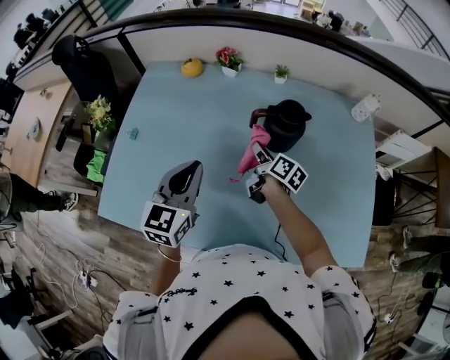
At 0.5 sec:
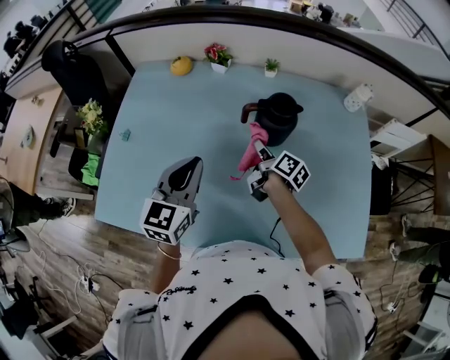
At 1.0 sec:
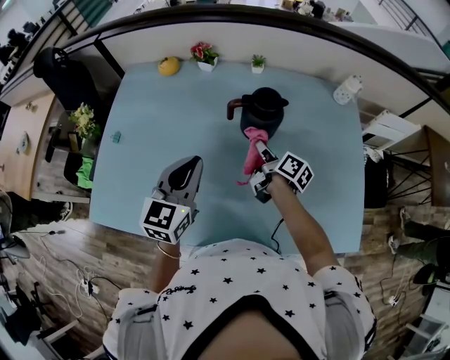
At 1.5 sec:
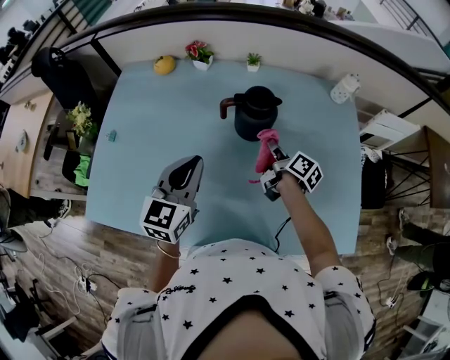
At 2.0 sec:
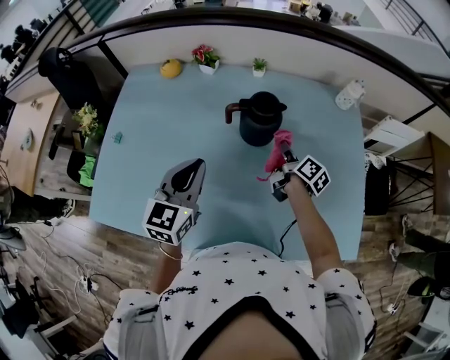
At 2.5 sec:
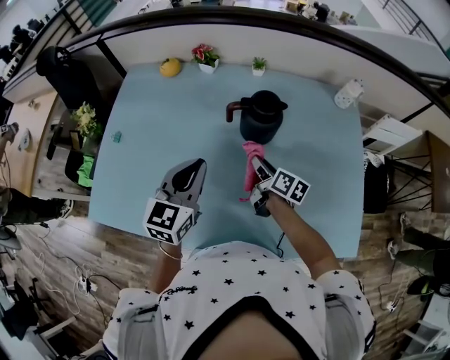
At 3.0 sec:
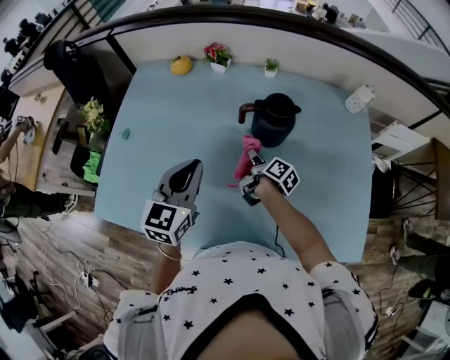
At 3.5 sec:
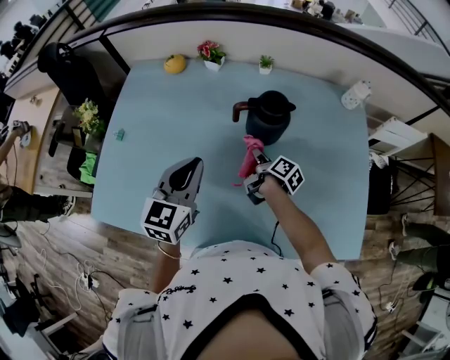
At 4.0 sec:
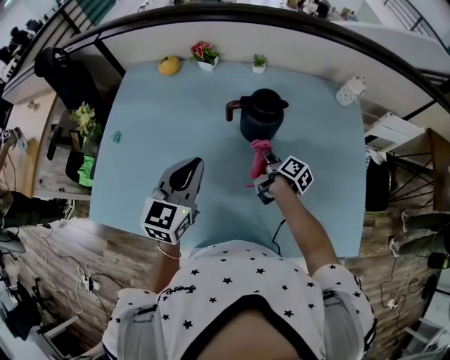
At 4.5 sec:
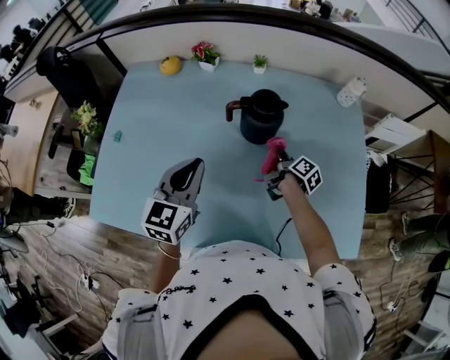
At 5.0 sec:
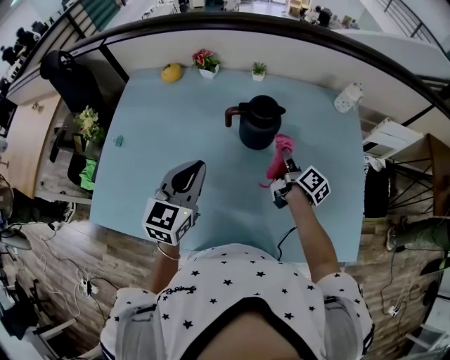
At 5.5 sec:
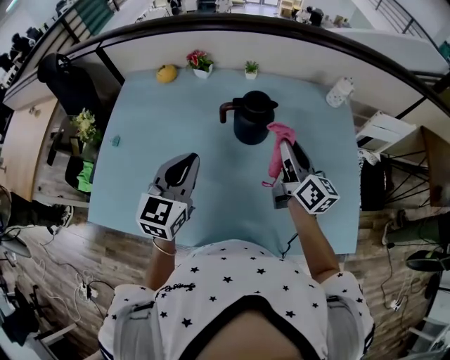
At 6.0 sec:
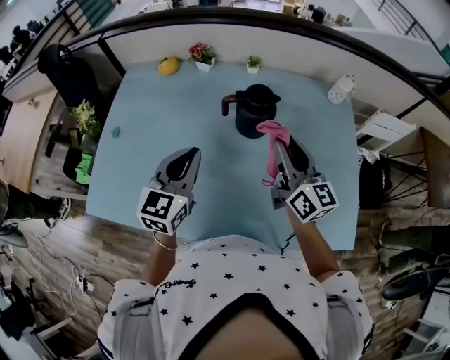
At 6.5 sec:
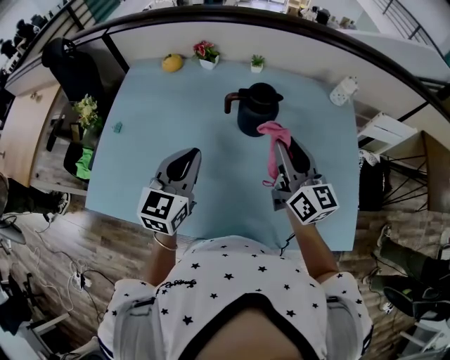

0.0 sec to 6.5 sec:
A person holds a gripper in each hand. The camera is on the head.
0.0 sec to 2.0 sec: The left gripper moves to the right, some 10 cm; the right gripper is displaced to the right by about 15 cm.
2.0 sec to 4.5 sec: The right gripper heads downward, covering roughly 5 cm, and travels to the left and back again, some 15 cm each way.
4.5 sec to 6.5 sec: The right gripper goes roughly 25 cm upward, and twists roughly 60 degrees counterclockwise, seen from behind.

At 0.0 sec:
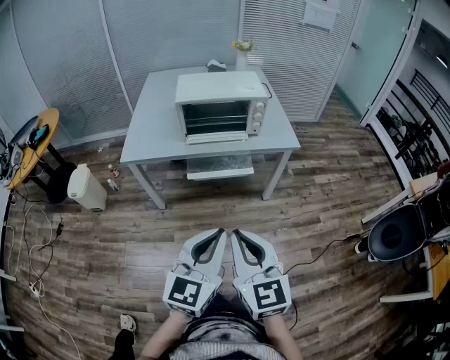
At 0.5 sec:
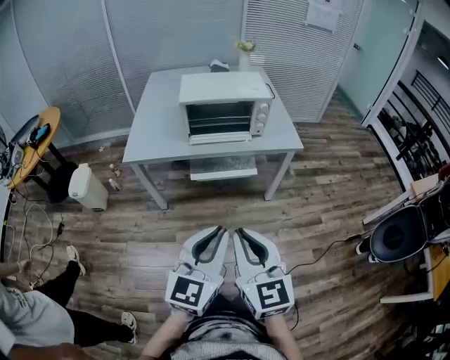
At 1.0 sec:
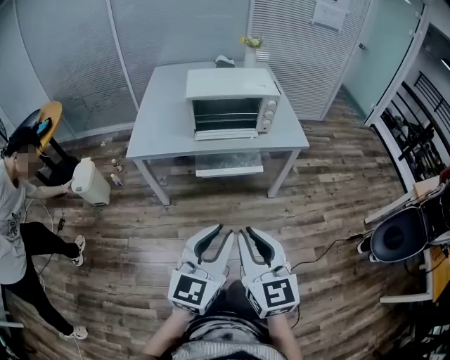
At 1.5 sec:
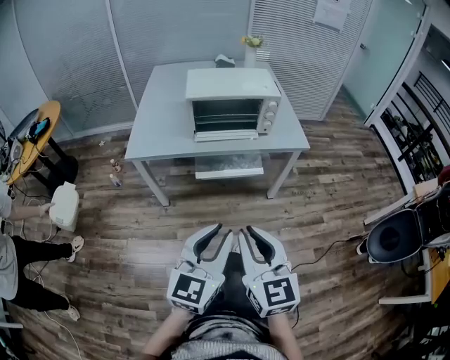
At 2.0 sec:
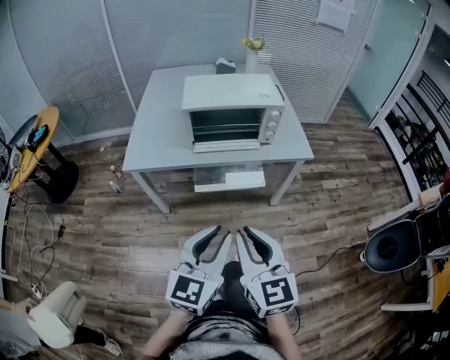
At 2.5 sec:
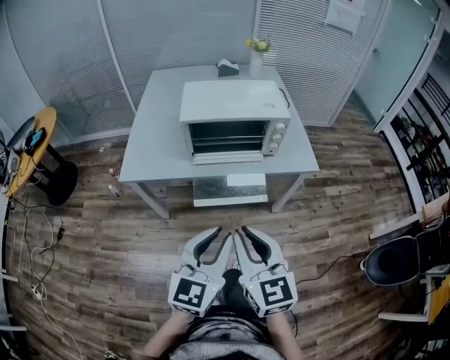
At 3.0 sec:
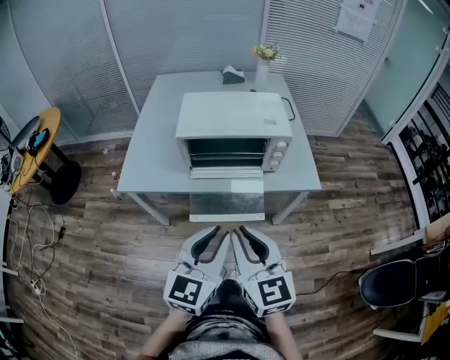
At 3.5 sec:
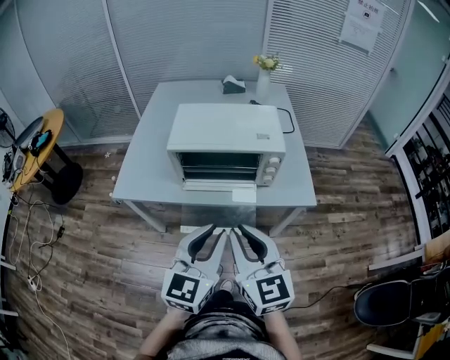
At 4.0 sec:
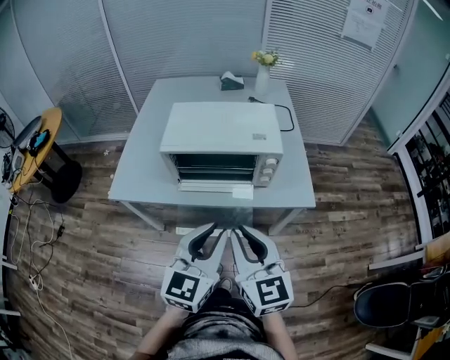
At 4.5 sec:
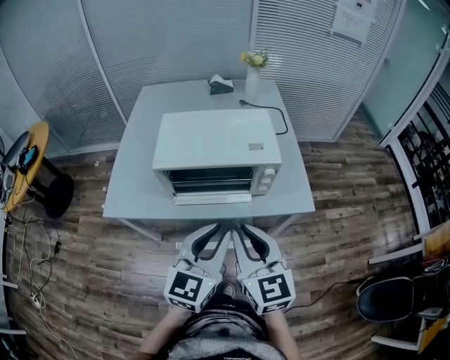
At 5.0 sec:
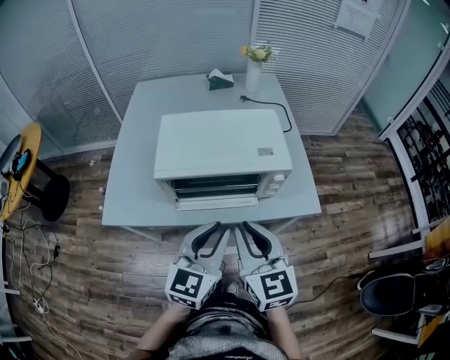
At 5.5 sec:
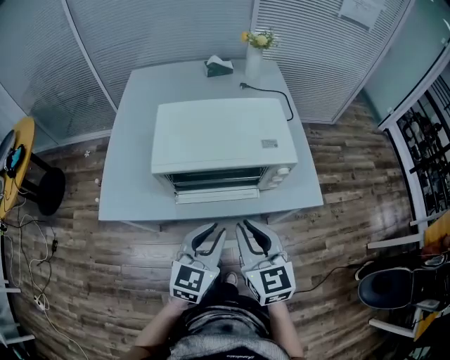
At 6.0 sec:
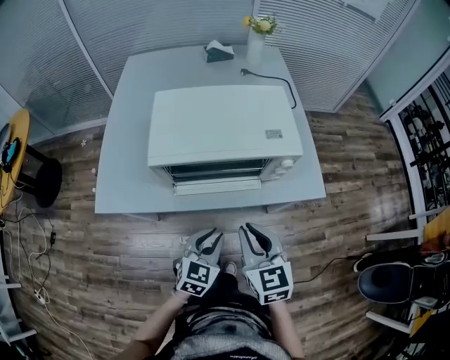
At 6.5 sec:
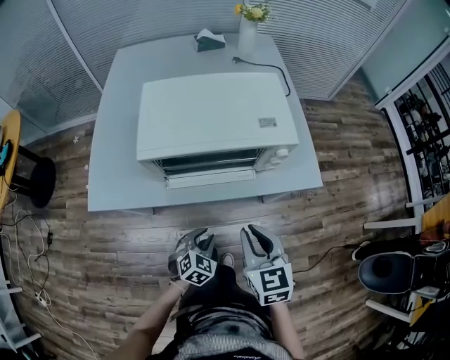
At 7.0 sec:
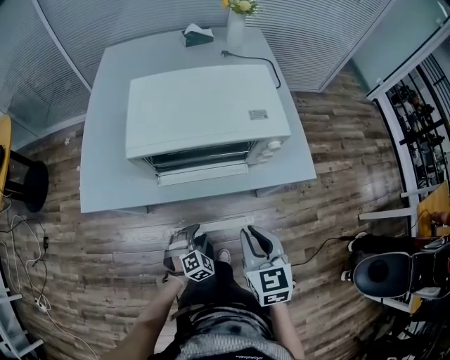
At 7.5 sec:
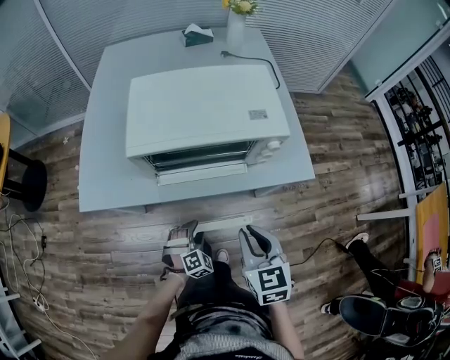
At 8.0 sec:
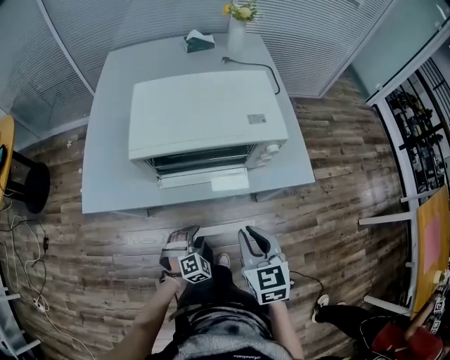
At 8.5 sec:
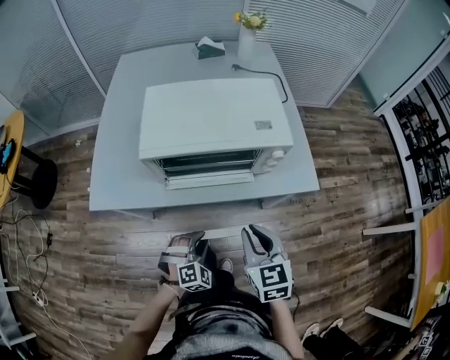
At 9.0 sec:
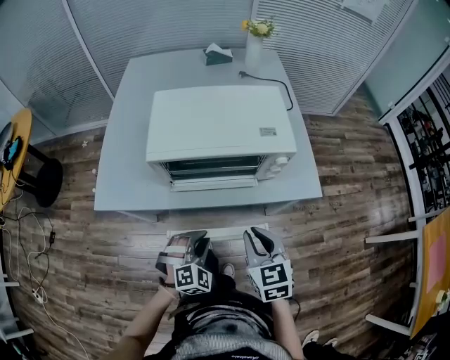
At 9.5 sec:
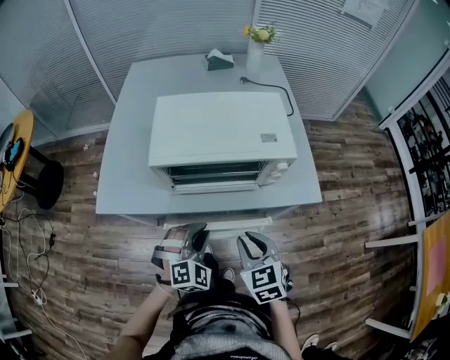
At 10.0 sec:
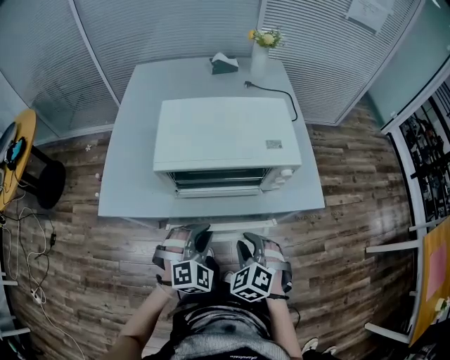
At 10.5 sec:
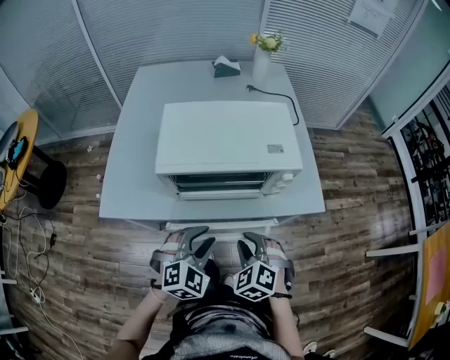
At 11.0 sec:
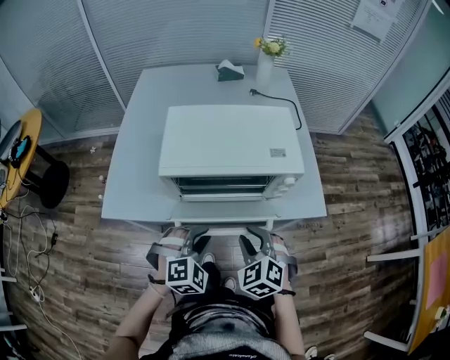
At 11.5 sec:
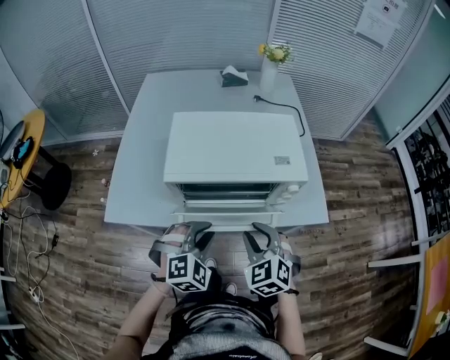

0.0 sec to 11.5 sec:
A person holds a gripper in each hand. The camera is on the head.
0.0 sec to 2.0 sec: Both grippers travel together forward, roughly 10 cm.
2.0 sec to 4.0 sec: Both grippers travel together forward, approximately 25 cm.
4.0 sec to 6.0 sec: The left gripper is displaced downward by about 20 cm, and rotates roughly 30 degrees. The right gripper is displaced downward and forward by about 15 cm.
6.0 sec to 7.5 sec: The left gripper goes roughly 20 cm downward, rotates around the line of its fingers by some 40 degrees, clockwise from behind, and opens up, while the right gripper moves approximately 5 cm.
7.5 sec to 9.5 sec: The left gripper moves upward, roughly 20 cm, and closes.
9.5 sec to 11.5 sec: The left gripper ends up about 5 cm from where it was. Meanwhile the right gripper shifts about 5 cm forward, and swivels approximately 20 degrees.

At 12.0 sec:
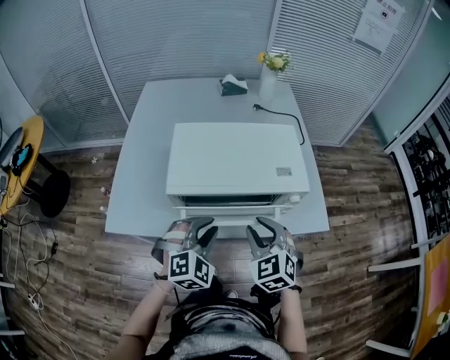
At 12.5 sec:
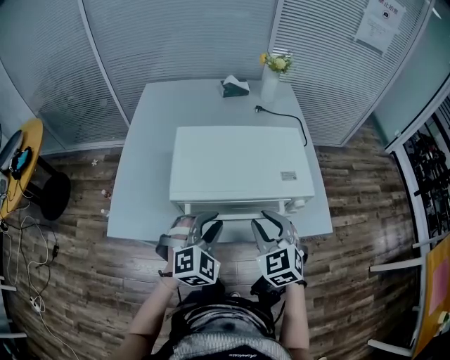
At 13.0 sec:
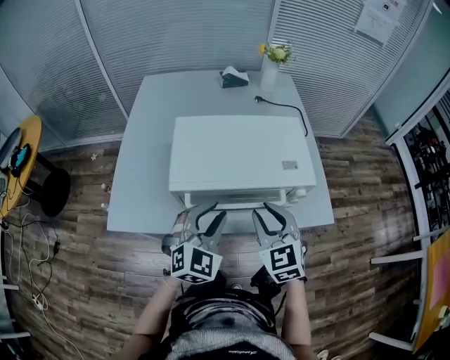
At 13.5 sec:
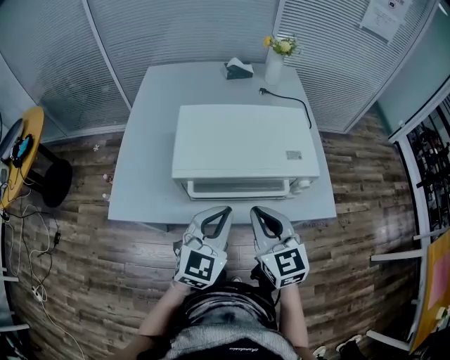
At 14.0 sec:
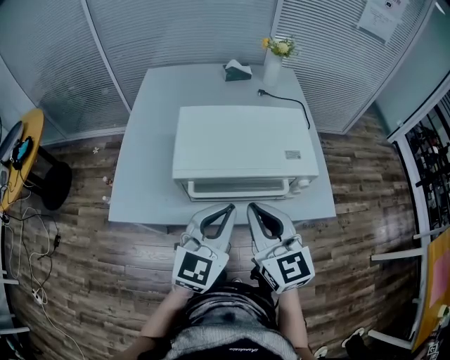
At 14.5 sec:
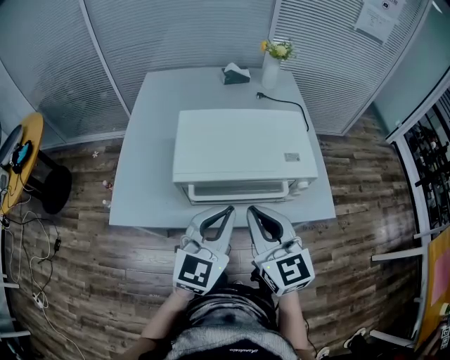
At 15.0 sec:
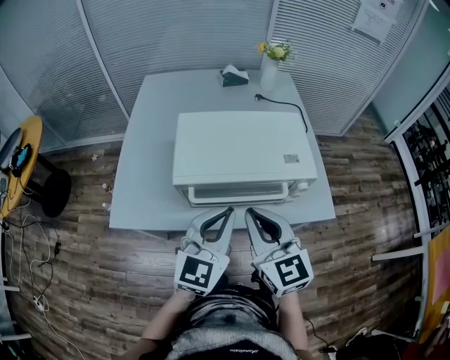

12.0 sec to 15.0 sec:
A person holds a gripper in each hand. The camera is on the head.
12.0 sec to 13.5 sec: The left gripper goes about 5 cm upward, turns by about 40 degrees, and closes. Meanwhile the right gripper shifts by about 5 cm, changes its angle by roughly 30 degrees, and closes up.
13.5 sec to 15.0 sec: The two grippers go some 5 cm upward.

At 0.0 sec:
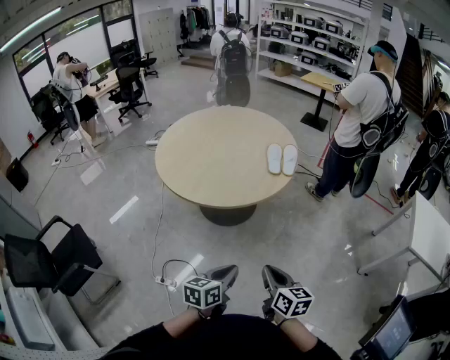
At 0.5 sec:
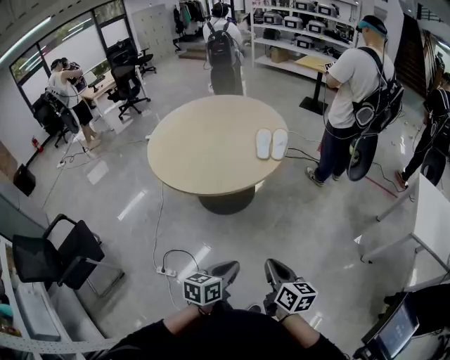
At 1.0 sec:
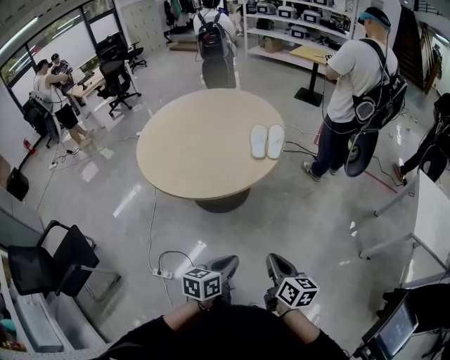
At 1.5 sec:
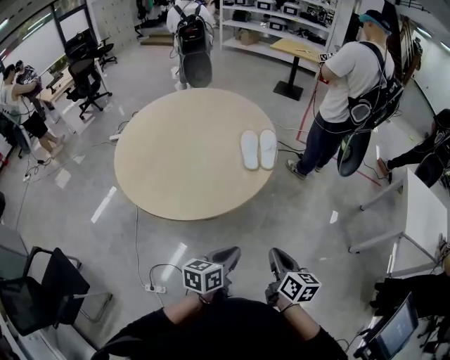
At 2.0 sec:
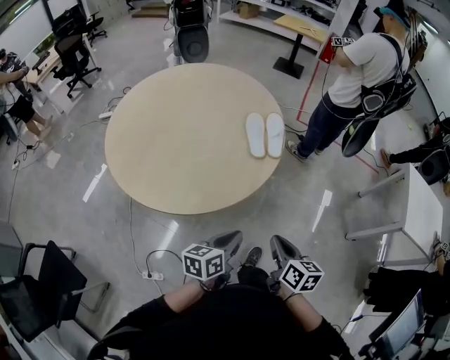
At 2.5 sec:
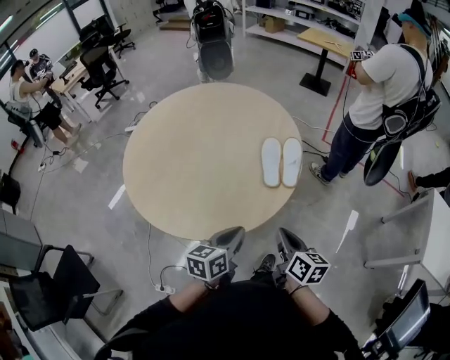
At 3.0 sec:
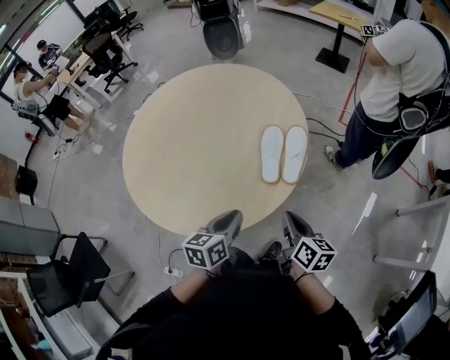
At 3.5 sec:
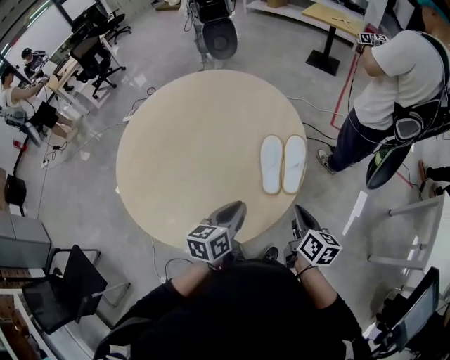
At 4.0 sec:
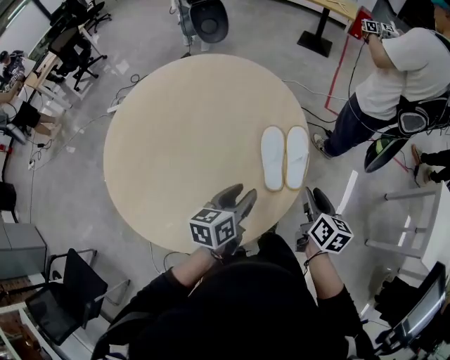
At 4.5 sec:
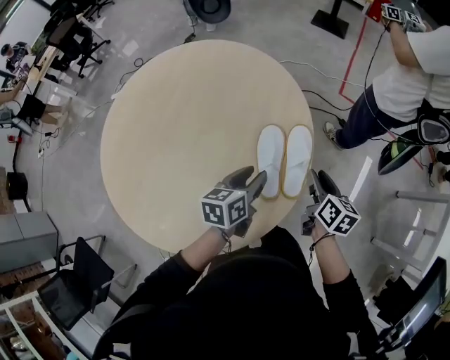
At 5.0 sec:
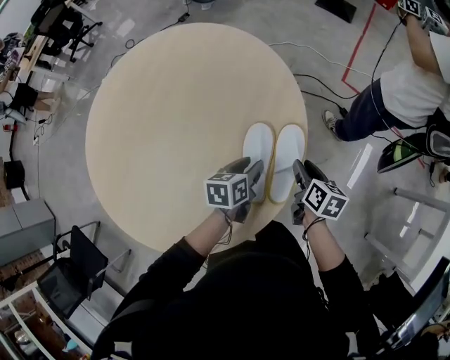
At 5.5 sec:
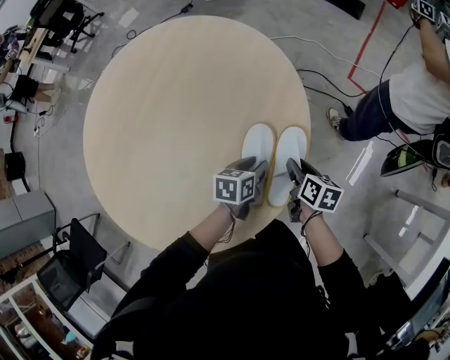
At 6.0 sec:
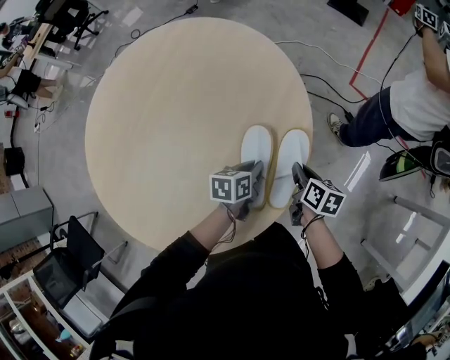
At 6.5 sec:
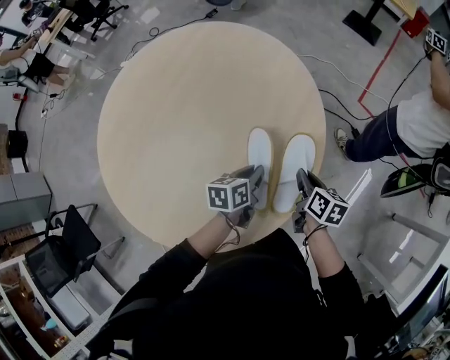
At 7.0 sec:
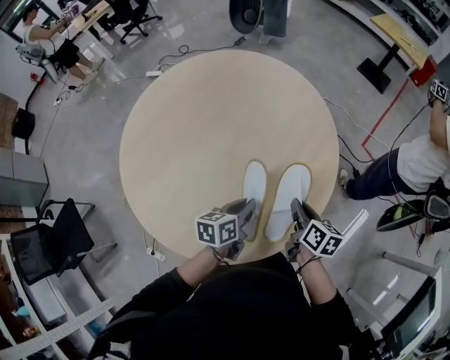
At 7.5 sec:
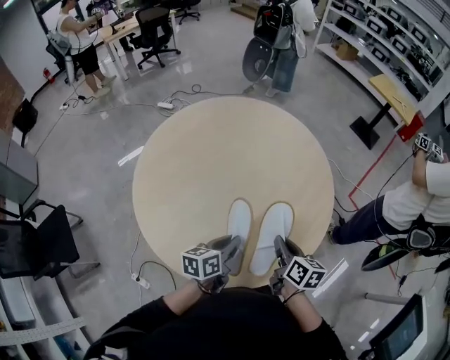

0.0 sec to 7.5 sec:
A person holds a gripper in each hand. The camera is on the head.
0.0 sec to 2.0 sec: Both grippers travel together forward, some 30 cm.
2.0 sec to 4.0 sec: Both grippers travel together forward, approximately 40 cm. The left gripper opens its fingers. Meanwhile the right gripper opens its fingers.
4.0 sec to 5.5 sec: The right gripper heads forward and downward, covering about 30 cm, and swivels roughly 30 degrees. The left gripper is displaced forward, downward and to the right by roughly 35 cm, and rotates approximately 20 degrees.
5.5 sec to 7.5 sec: The left gripper goes approximately 40 cm to the left, backward and upward, turns by some 30 degrees, and closes its fingers; the right gripper shifts approximately 35 cm to the left, upward and backward, changes its angle by some 20 degrees, and closes its fingers.
